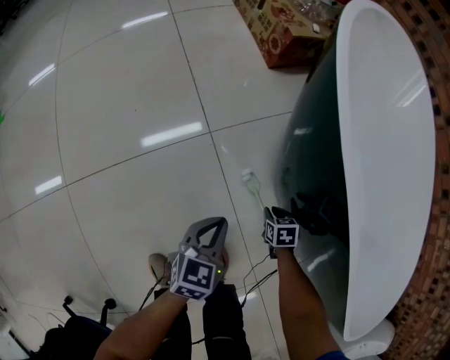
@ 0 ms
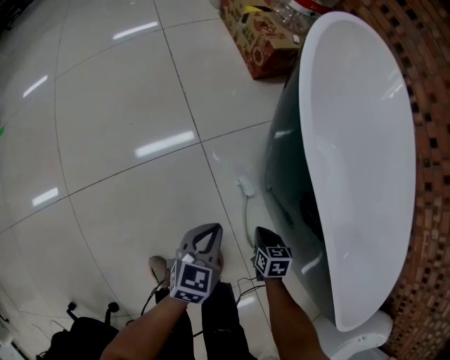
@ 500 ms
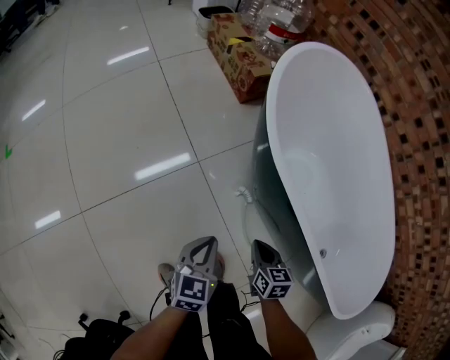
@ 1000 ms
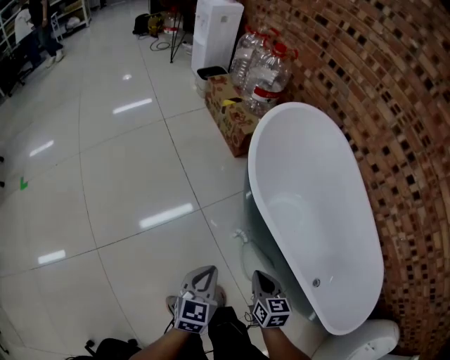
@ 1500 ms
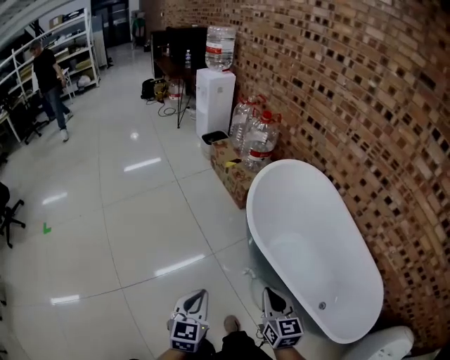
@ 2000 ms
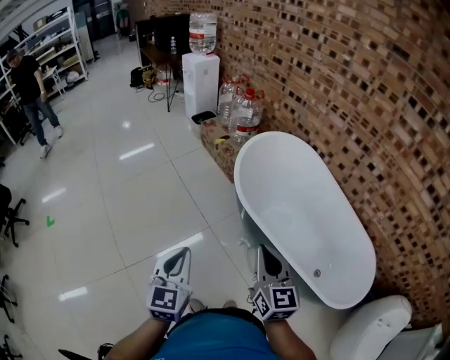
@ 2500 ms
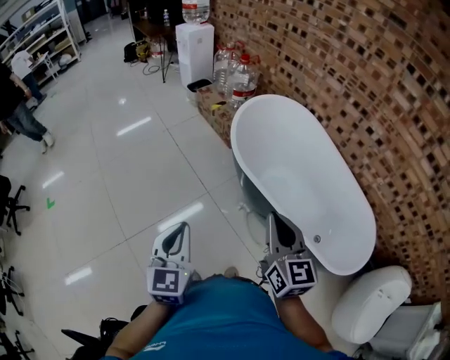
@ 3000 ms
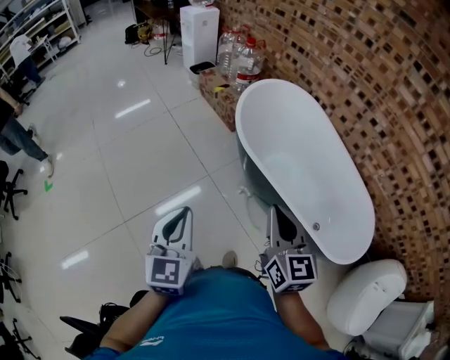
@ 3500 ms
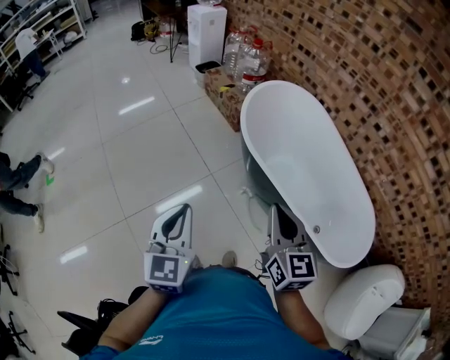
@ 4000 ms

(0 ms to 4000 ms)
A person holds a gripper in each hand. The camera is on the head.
0 ms - 2000 ms: The two grippers go approximately 60 cm upward. The right gripper angles its fingers upward, by some 50 degrees, and closes its fingers.
2000 ms - 4000 ms: Both grippers move upward and backward, approximately 20 cm.

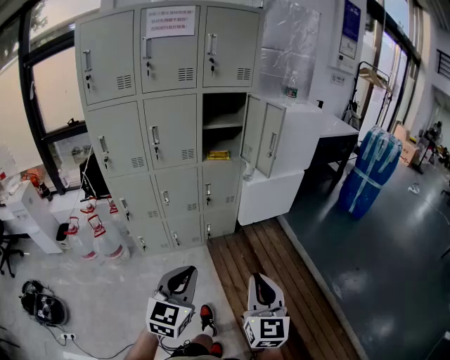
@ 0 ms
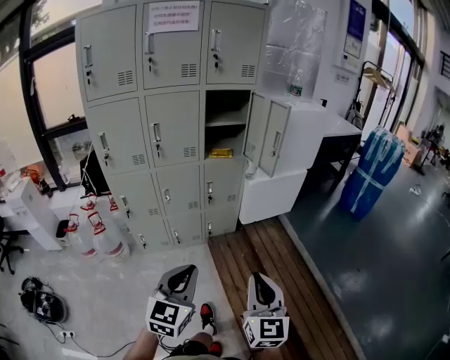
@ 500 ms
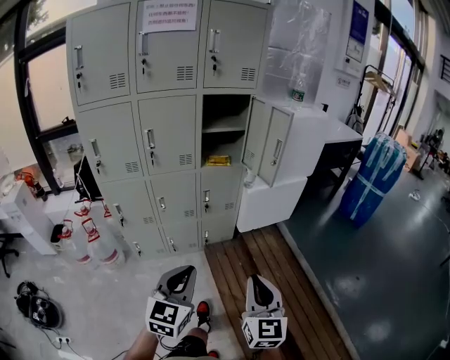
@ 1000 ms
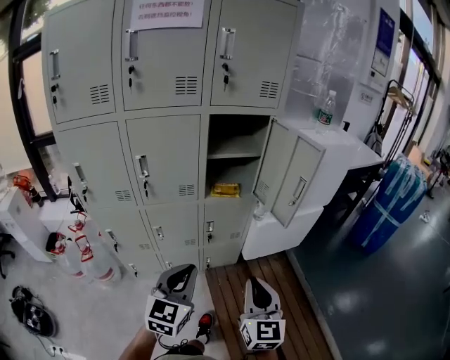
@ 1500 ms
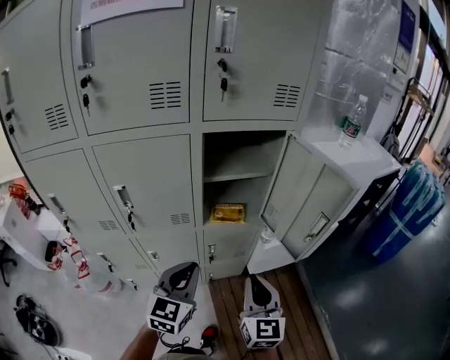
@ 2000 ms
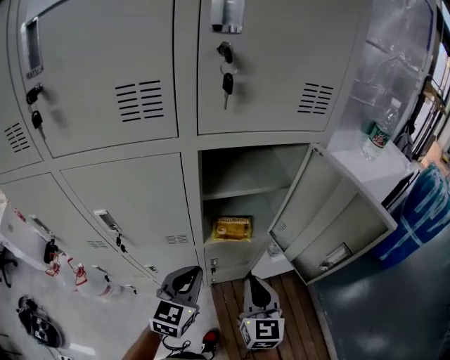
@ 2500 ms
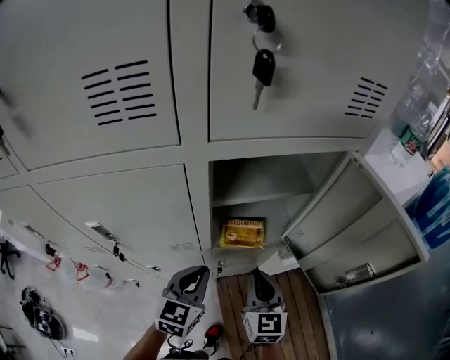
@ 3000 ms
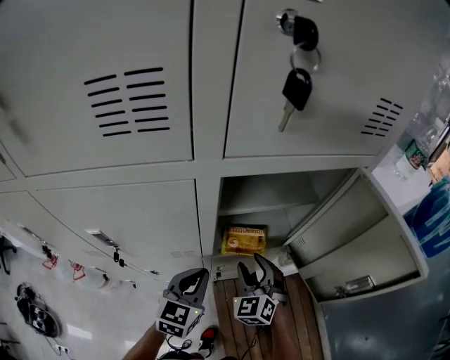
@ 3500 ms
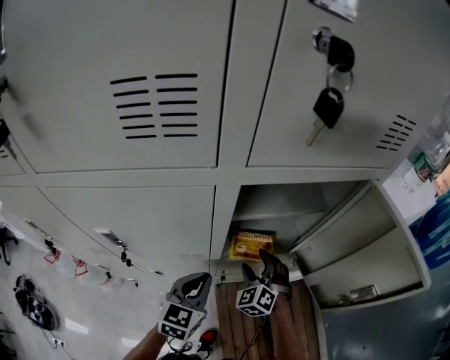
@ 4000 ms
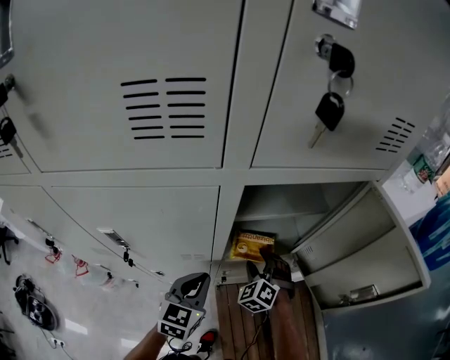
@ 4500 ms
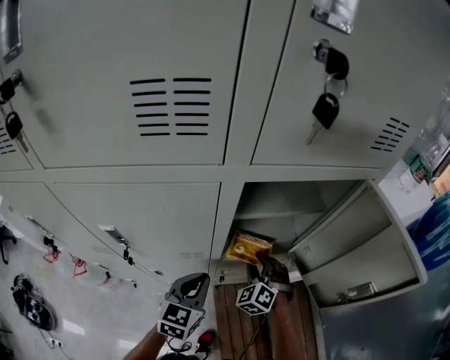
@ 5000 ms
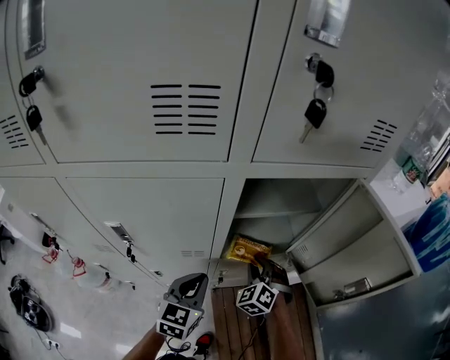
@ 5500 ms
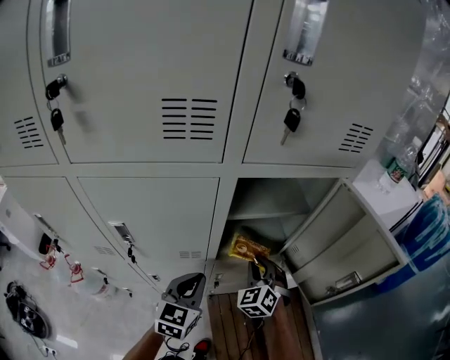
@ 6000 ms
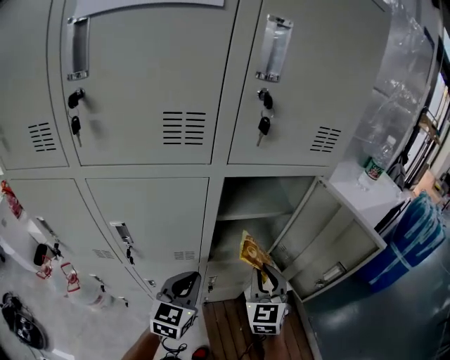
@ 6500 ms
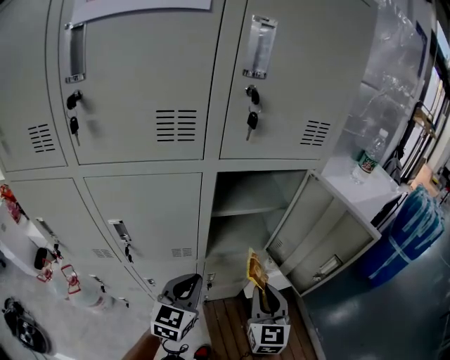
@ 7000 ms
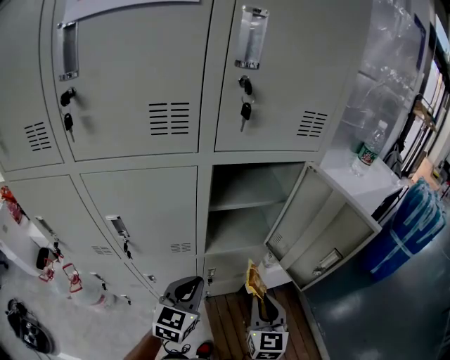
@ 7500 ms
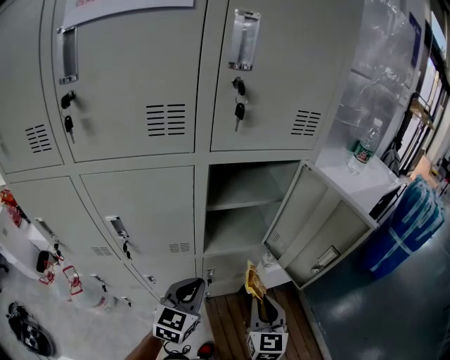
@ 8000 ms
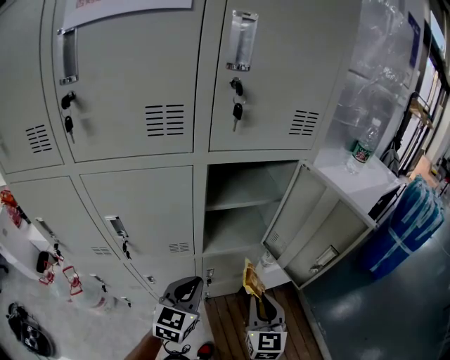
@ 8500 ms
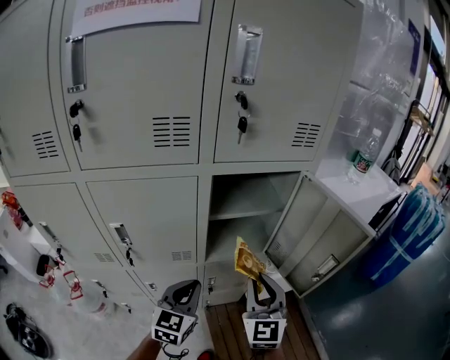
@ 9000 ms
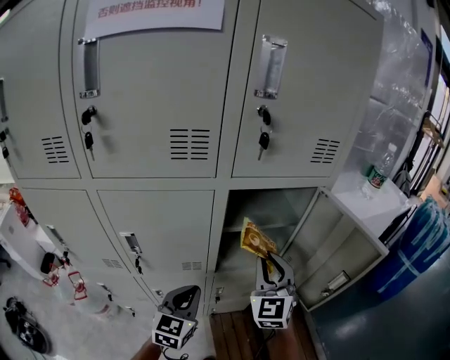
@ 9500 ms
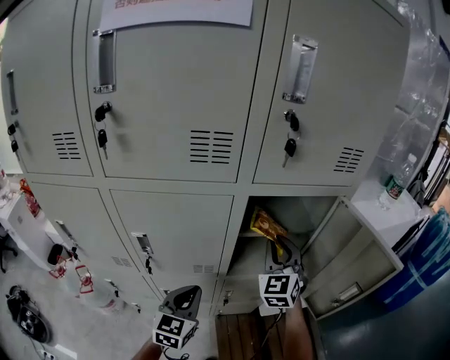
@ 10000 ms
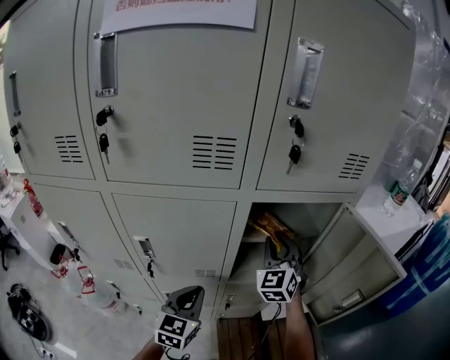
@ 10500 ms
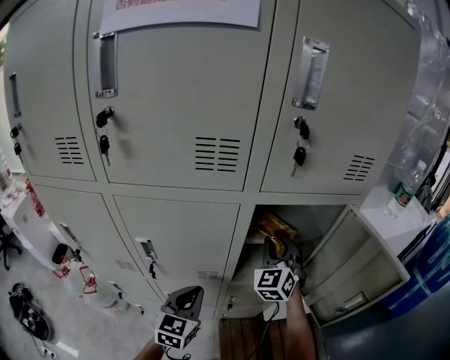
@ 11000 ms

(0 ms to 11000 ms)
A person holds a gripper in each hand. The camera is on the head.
0 ms - 2000 ms: Both grippers are carried forward, some 50 cm.
2000 ms - 3500 ms: Both grippers travel together forward and downward, roughly 25 cm. The right gripper turns by about 40 degrees, and opens its fingers.
3500 ms - 5500 ms: The right gripper closes up.
5500 ms - 7500 ms: The left gripper moves backward and upward, roughly 10 cm. The right gripper goes approximately 25 cm backward, upward and to the right, and rolls clockwise, seen from behind, by roughly 50 degrees.
7500 ms - 9000 ms: The right gripper goes roughly 10 cm upward.
9000 ms - 11000 ms: The left gripper heads to the left, covering about 5 cm. The right gripper travels forward by roughly 20 cm, and changes its angle by approximately 20 degrees.

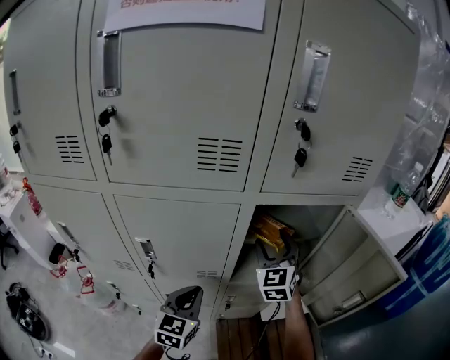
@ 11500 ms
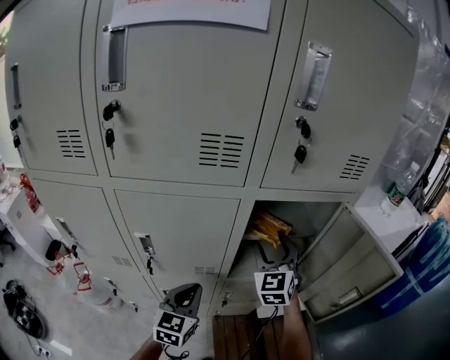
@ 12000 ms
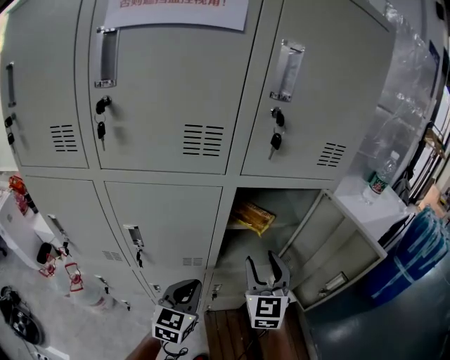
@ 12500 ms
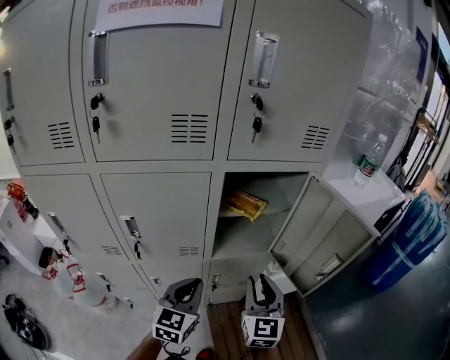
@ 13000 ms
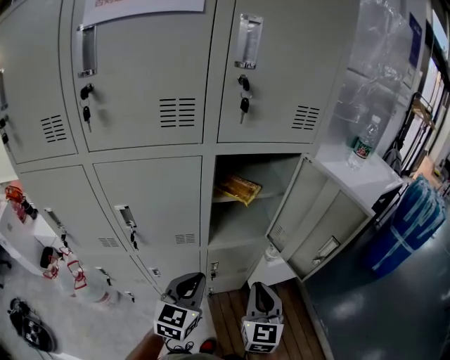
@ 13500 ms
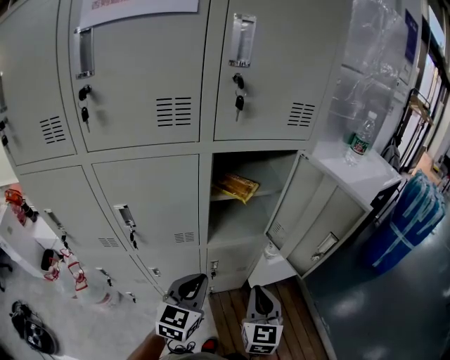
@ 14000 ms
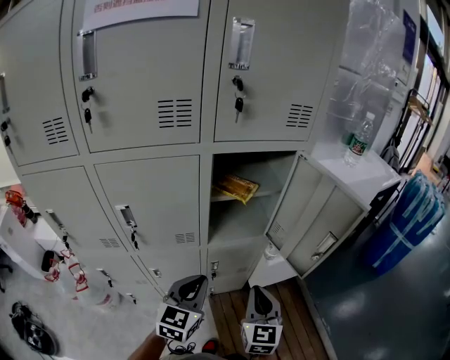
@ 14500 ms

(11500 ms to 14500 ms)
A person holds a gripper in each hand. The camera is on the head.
11500 ms - 13000 ms: The left gripper heads to the right and backward, covering some 10 cm, while the right gripper moves backward, approximately 20 cm, changes its angle by approximately 20 degrees, and closes its fingers.
13000 ms - 14500 ms: The right gripper goes approximately 10 cm backward and downward.

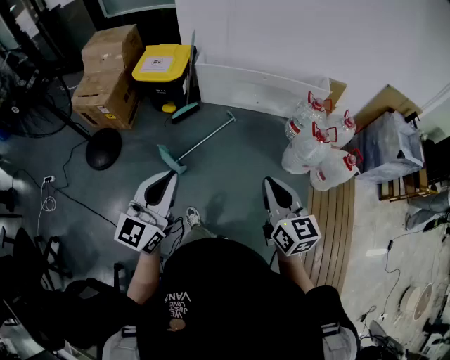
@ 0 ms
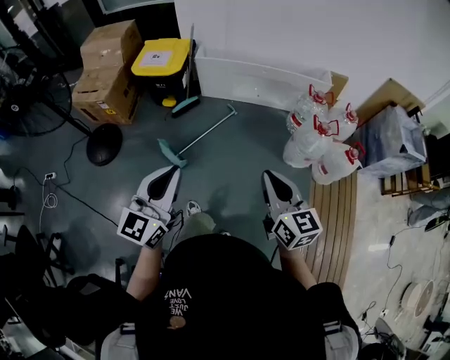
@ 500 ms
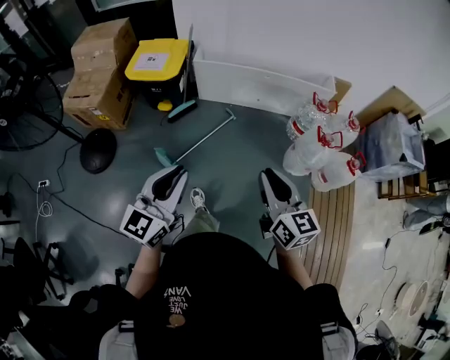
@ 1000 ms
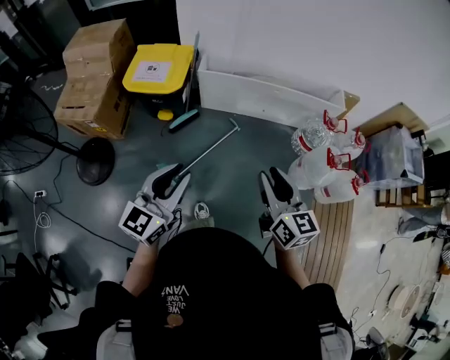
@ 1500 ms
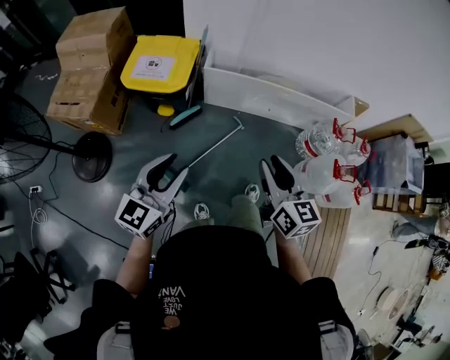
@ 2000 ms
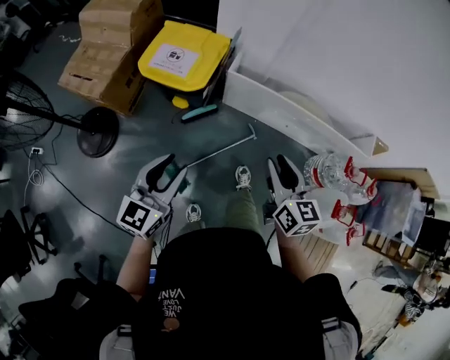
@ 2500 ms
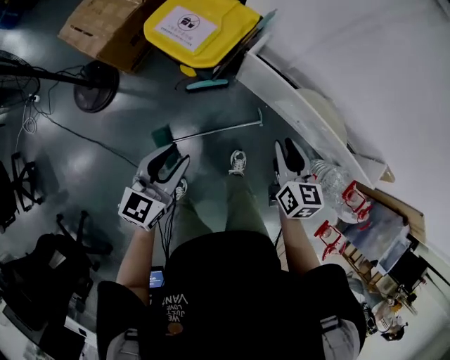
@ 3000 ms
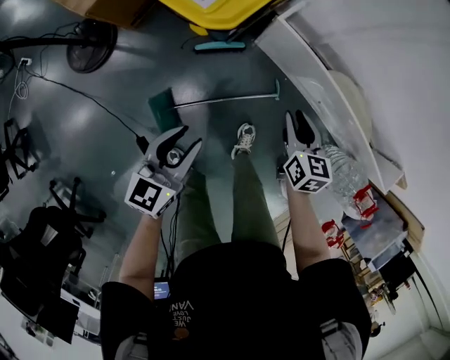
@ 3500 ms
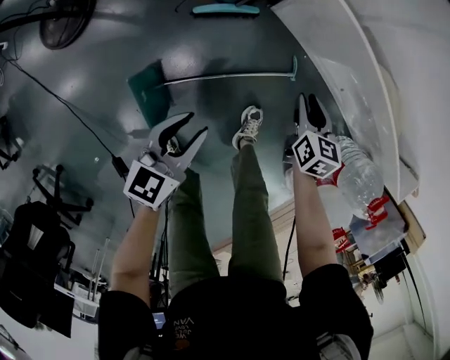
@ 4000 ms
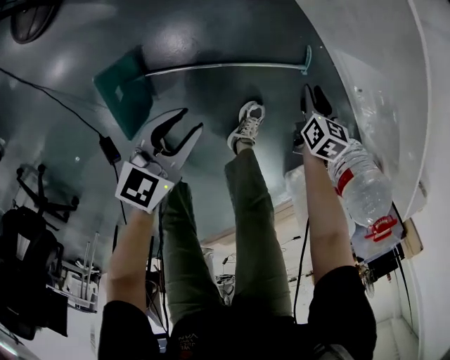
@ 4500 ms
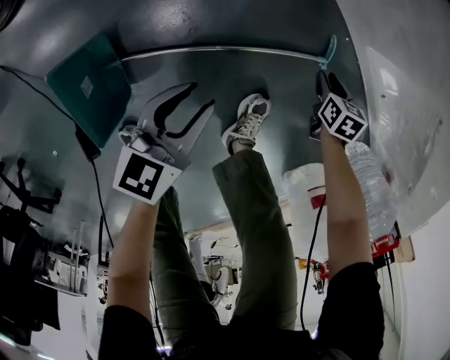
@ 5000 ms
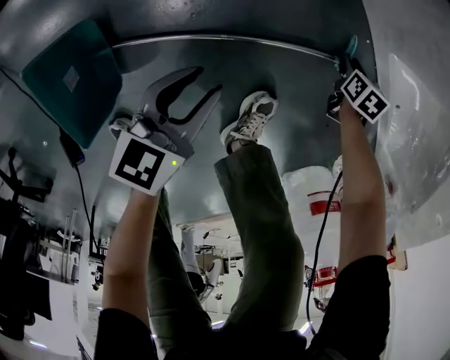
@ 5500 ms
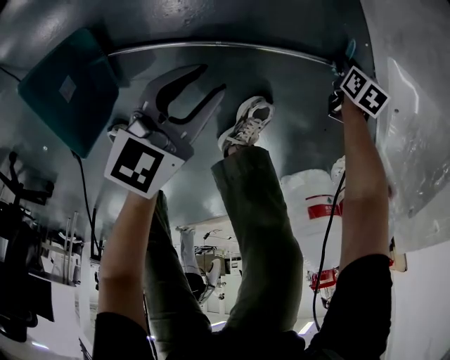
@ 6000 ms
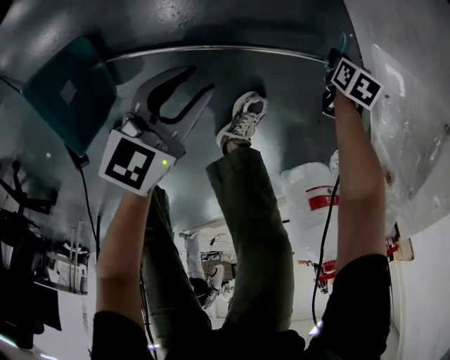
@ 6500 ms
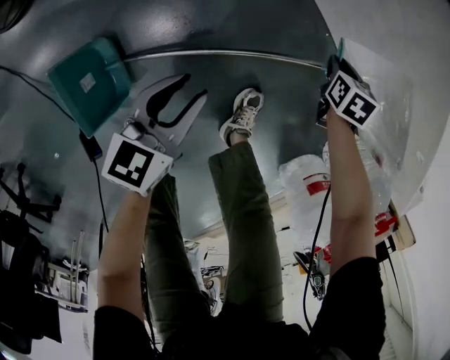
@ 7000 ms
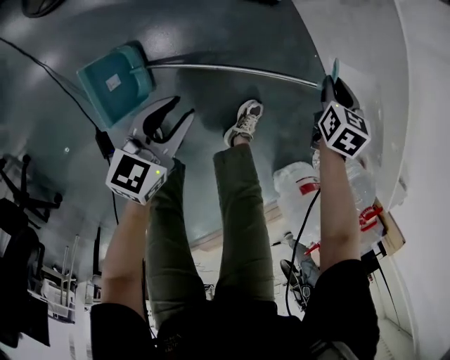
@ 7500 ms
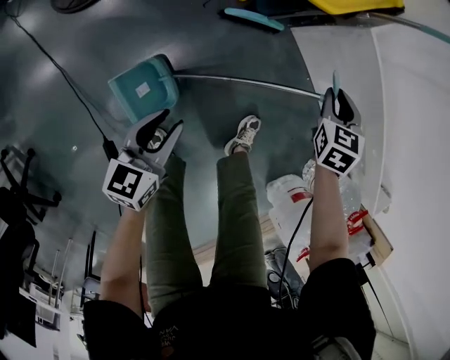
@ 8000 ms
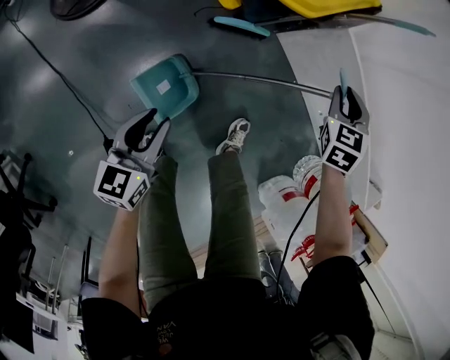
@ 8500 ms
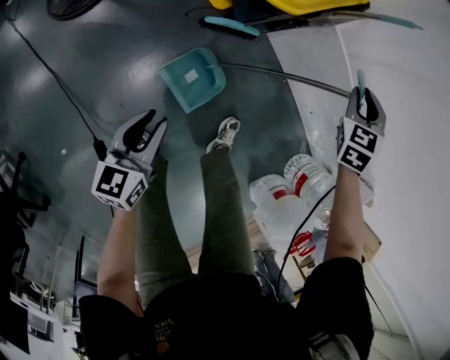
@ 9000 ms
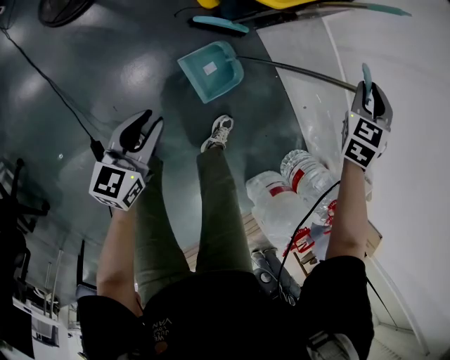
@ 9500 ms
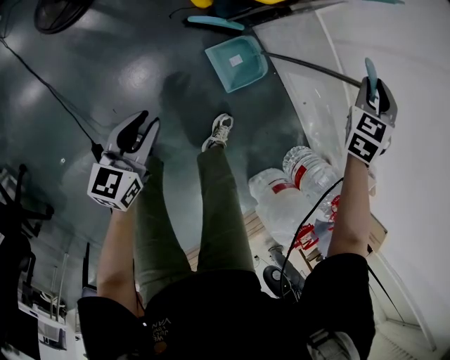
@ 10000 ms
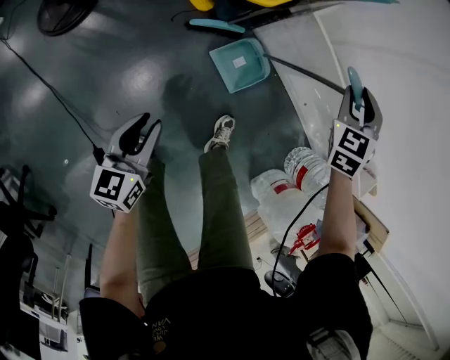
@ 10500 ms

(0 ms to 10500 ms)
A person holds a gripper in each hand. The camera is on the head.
0 ms - 2000 ms: The left gripper shifts about 35 cm forward, and opens. The right gripper heads forward and to the left, covering some 40 cm, and opens its fingers.
2000 ms - 4000 ms: The right gripper is displaced downward and forward by roughly 60 cm, and tilts its fingers approximately 30 degrees downward. The left gripper moves downward, some 40 cm, and rotates about 40 degrees.
4000 ms - 6500 ms: The grippers both shift downward by about 35 cm. The right gripper angles its fingers downward, by approximately 30 degrees.
6500 ms - 8500 ms: The right gripper travels upward by approximately 50 cm, and points its fingers roughly 40 degrees further upward. Meanwhile the left gripper is displaced upward by some 30 cm, and swivels roughly 20 degrees.
8500 ms - 10500 ms: The right gripper goes approximately 10 cm upward and to the right.
